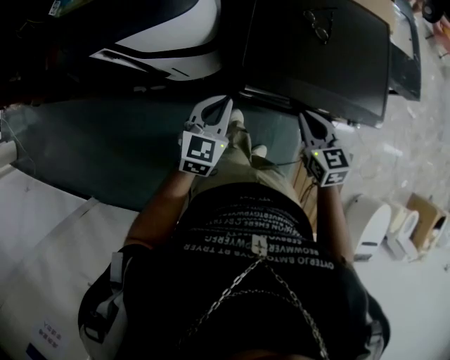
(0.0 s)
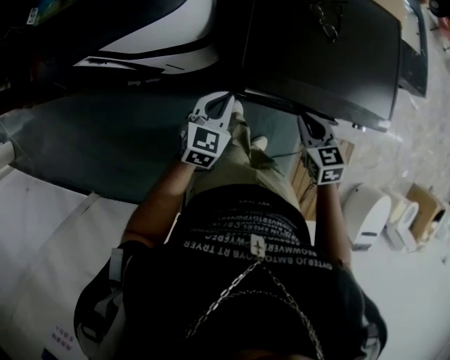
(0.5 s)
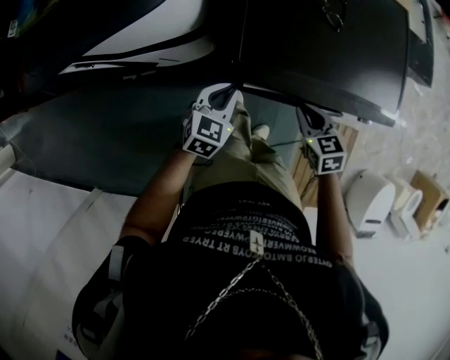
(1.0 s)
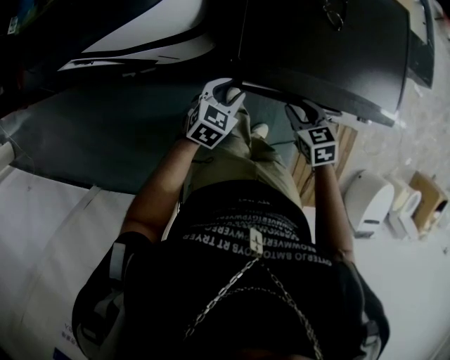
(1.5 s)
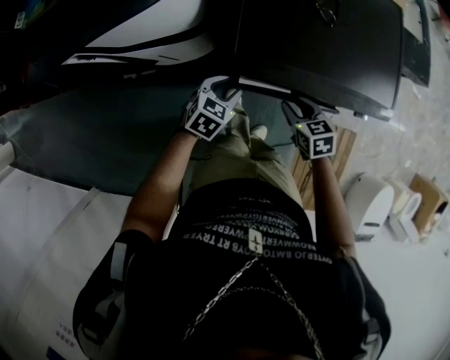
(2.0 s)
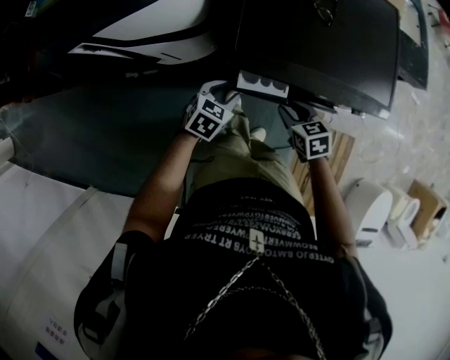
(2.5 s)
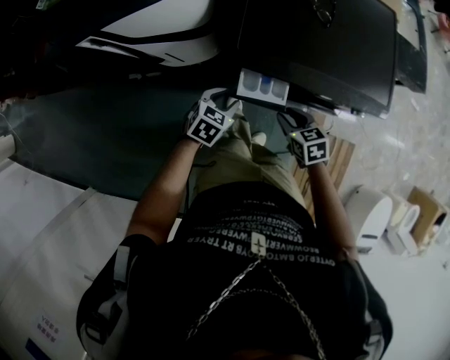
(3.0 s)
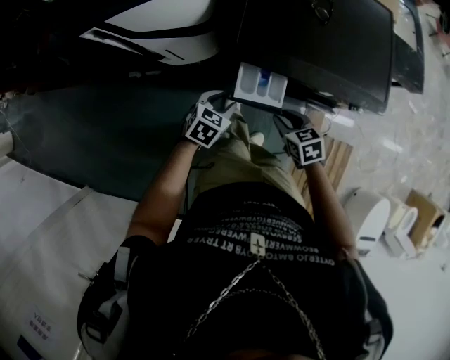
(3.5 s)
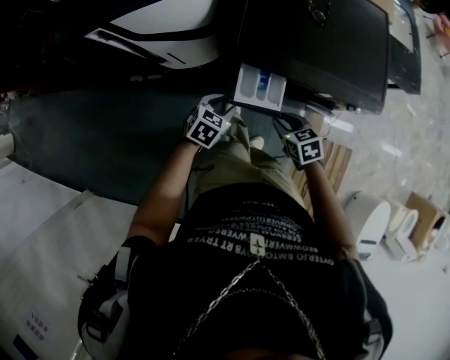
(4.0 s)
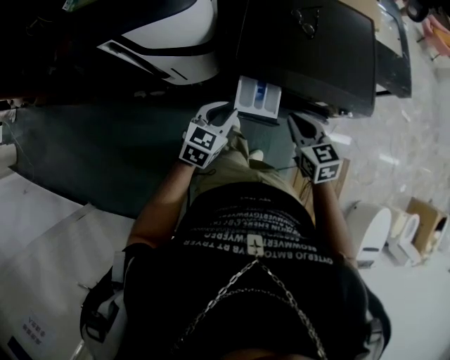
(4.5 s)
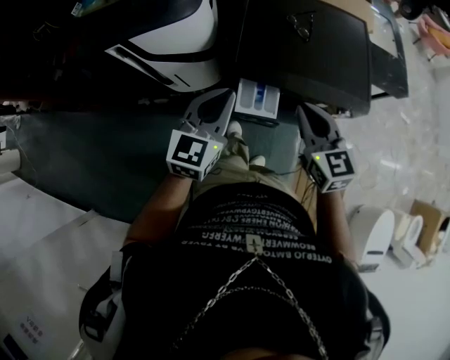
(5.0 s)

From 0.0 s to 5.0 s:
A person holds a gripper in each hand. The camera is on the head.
From 0.0 s to 2.5 s: Both grippers move downward, approximately 15 cm. The right gripper turns by roughly 20 degrees, and opens its fingers, while the left gripper turns by about 30 degrees, and opens its fingers.
From 2.5 s to 5.0 s: The two grippers go some 30 cm upward. The left gripper points its fingers approximately 40 degrees further upward, and closes. Meanwhile the right gripper tilts its fingers roughly 30 degrees upward, and closes up.

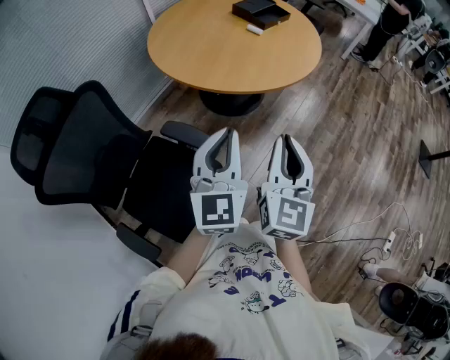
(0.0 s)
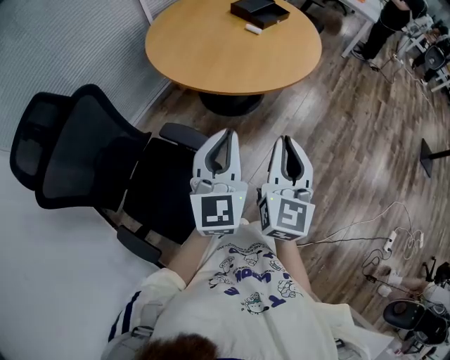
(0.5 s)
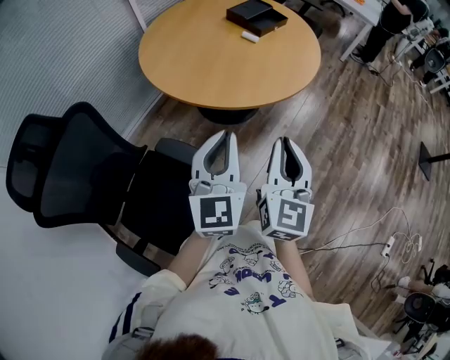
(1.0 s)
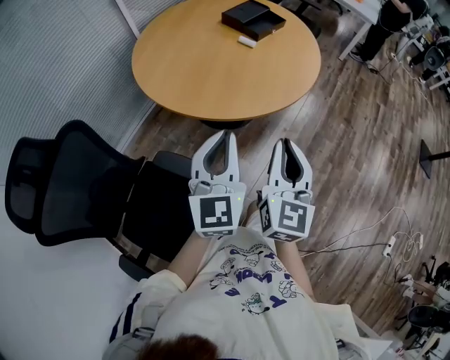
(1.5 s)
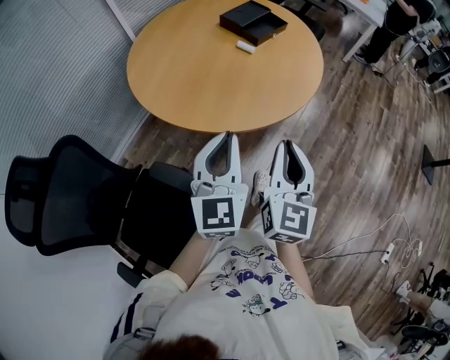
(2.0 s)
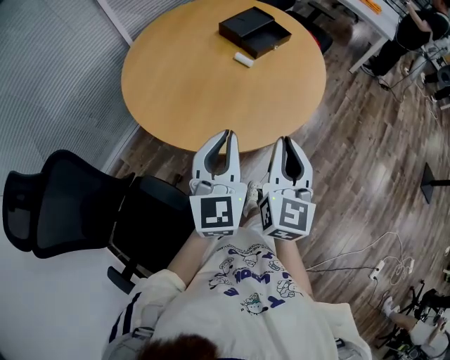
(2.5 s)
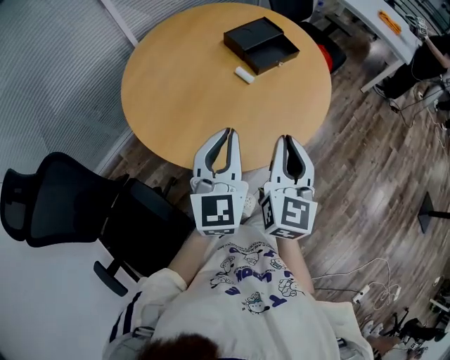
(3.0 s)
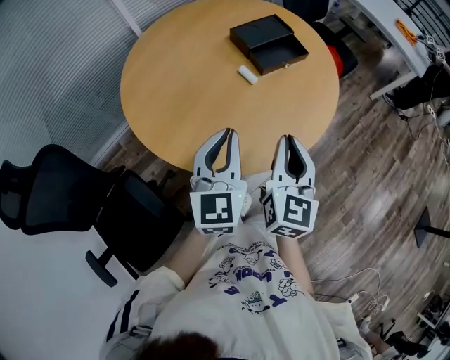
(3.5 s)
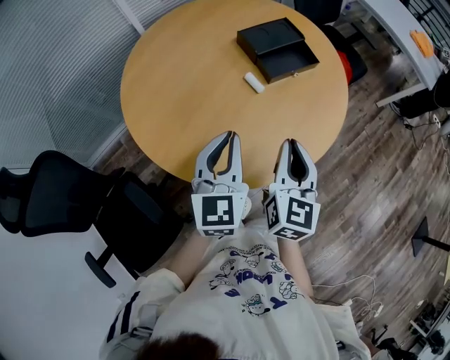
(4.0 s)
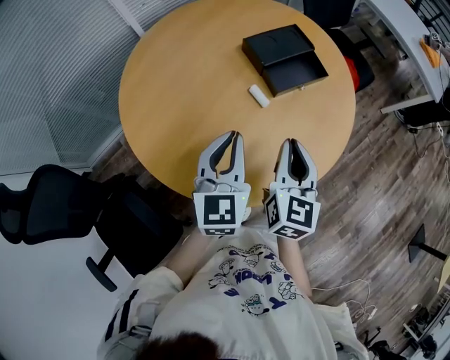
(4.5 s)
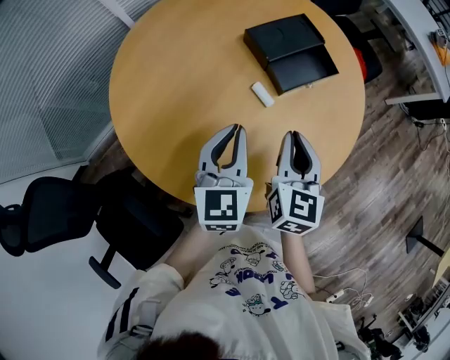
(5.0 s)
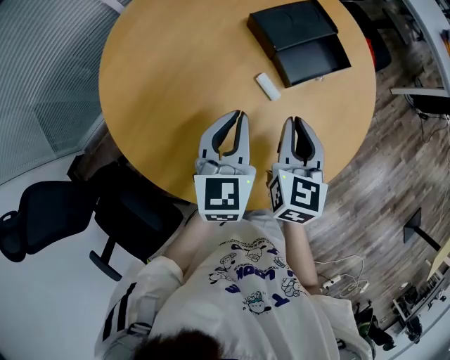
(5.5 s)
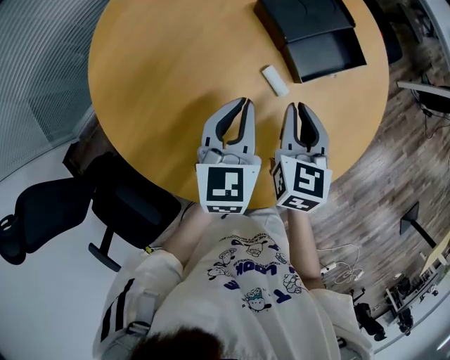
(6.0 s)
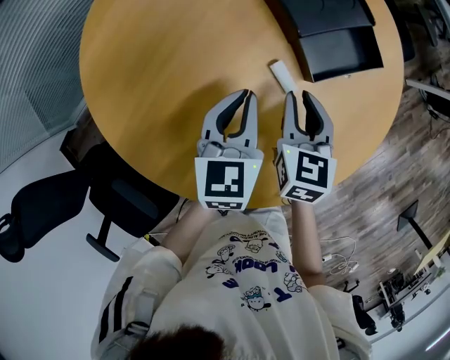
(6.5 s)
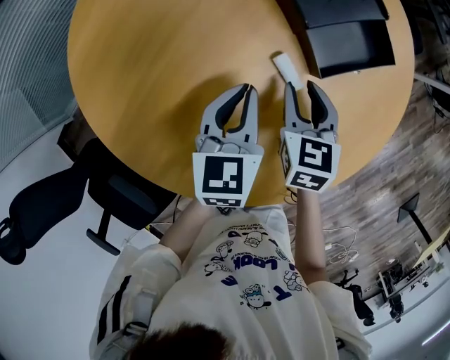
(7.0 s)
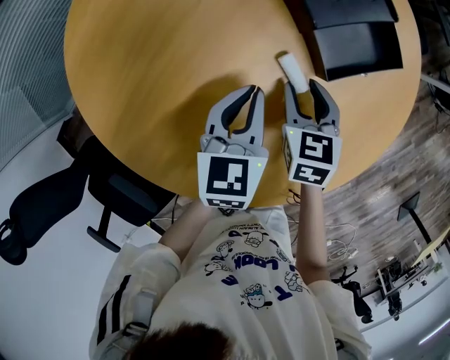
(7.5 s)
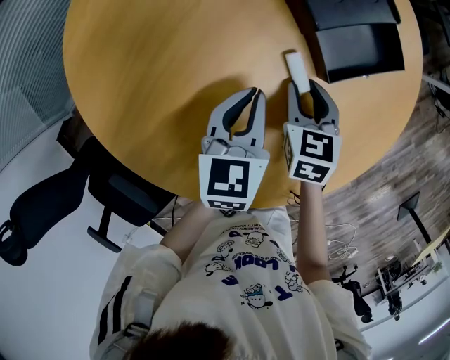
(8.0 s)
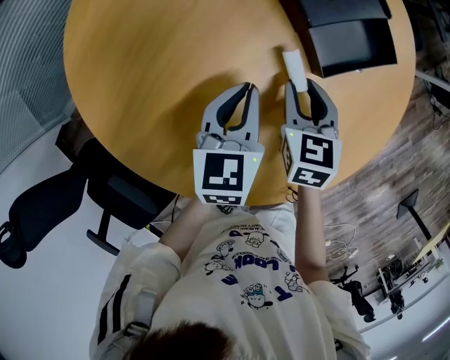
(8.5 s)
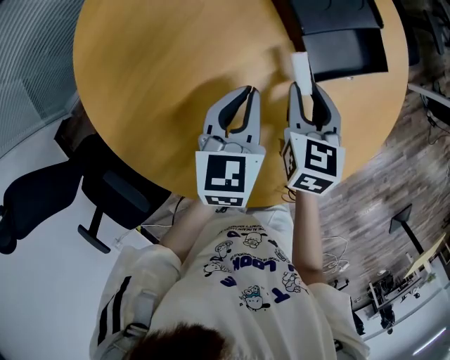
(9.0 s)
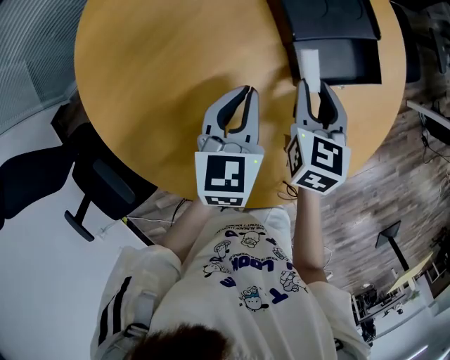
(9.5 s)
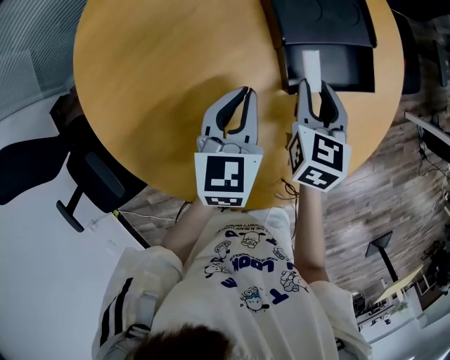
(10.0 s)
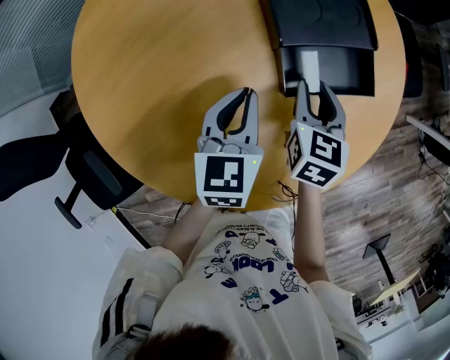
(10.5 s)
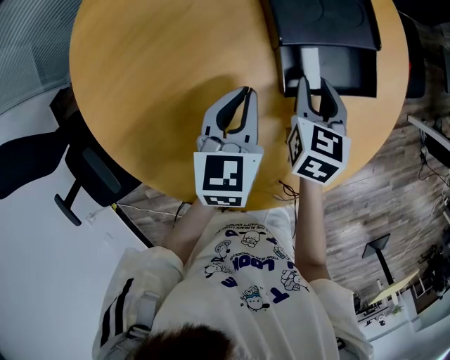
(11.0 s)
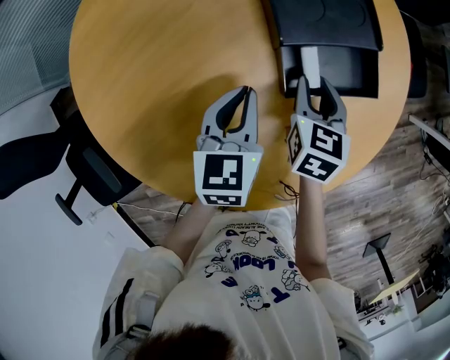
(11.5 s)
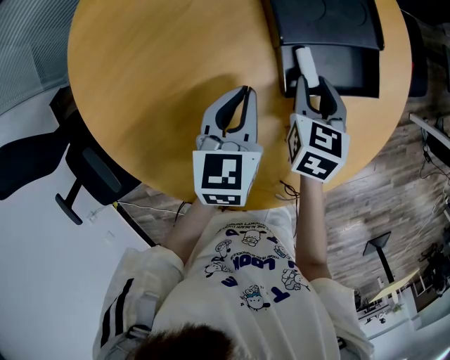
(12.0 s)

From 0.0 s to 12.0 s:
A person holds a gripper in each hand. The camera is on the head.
From 0.0 s to 2.0 s: The two grippers go some 20 cm forward.
From 2.0 s to 4.0 s: Both grippers travel together forward, approximately 25 cm.
From 4.0 s to 6.0 s: Both grippers move forward and downward, some 20 cm.
From 6.0 s to 8.0 s: The two grippers go approximately 10 cm downward. The right gripper opens its fingers.
From 8.0 s to 10.0 s: The left gripper moves some 5 cm. The right gripper is displaced upward, to the right and forward by roughly 10 cm.
From 10.0 s to 12.0 s: The grippers make only small movements.

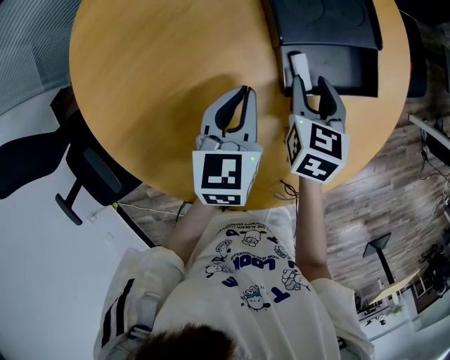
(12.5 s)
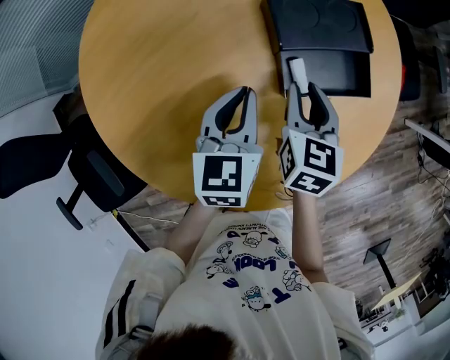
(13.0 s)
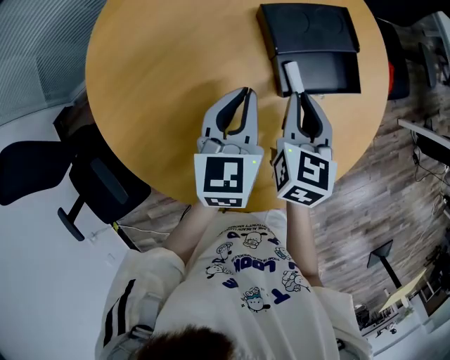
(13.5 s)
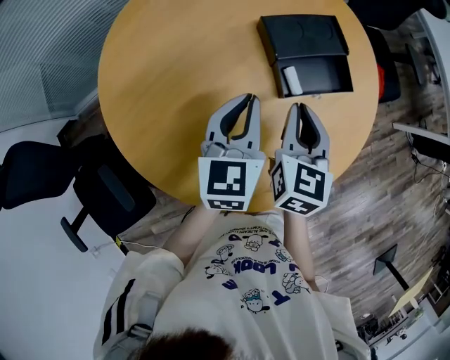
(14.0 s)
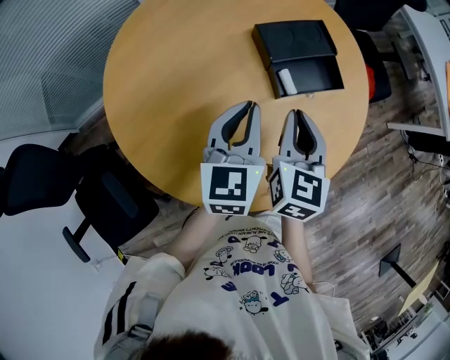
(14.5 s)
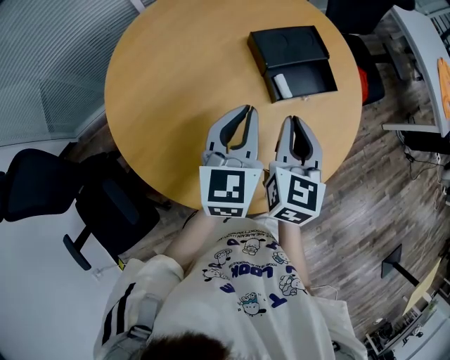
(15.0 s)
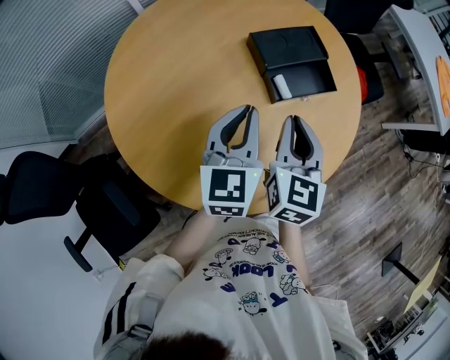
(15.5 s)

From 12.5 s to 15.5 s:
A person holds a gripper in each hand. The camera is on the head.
From 12.5 s to 14.0 s: The right gripper moves upward and backward, some 15 cm, and closes up. The left gripper moves upward, about 10 cm.
From 14.0 s to 15.5 s: The right gripper ends up roughly 5 cm from where it was.

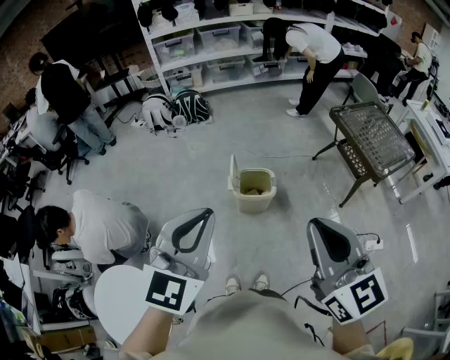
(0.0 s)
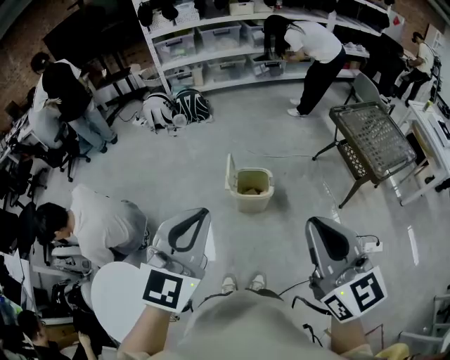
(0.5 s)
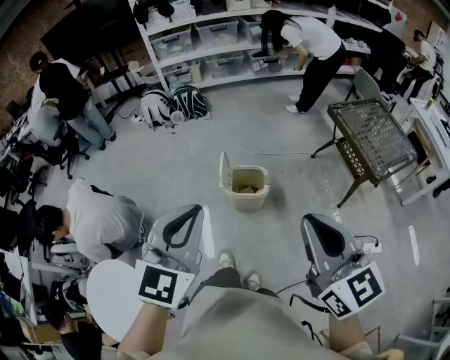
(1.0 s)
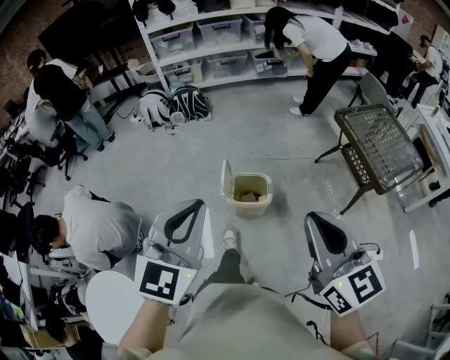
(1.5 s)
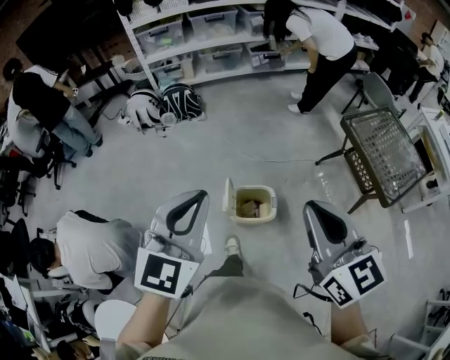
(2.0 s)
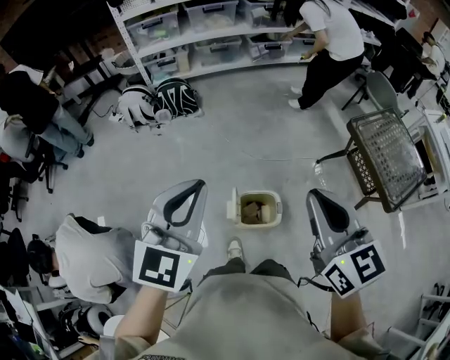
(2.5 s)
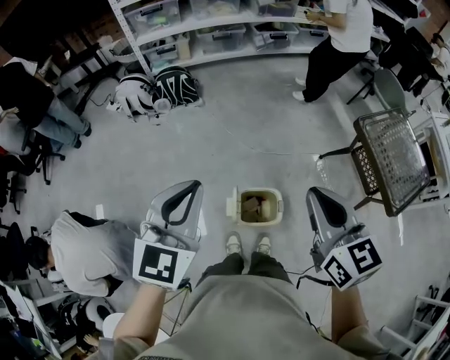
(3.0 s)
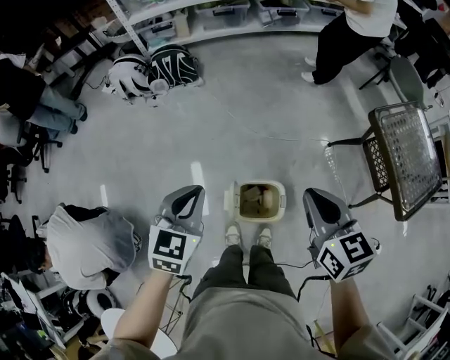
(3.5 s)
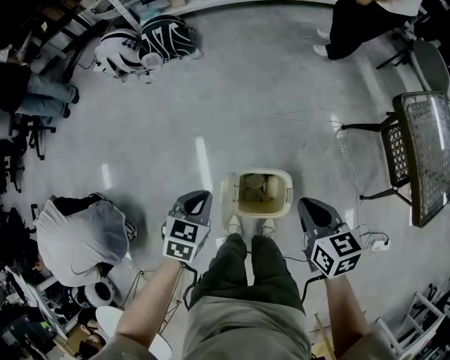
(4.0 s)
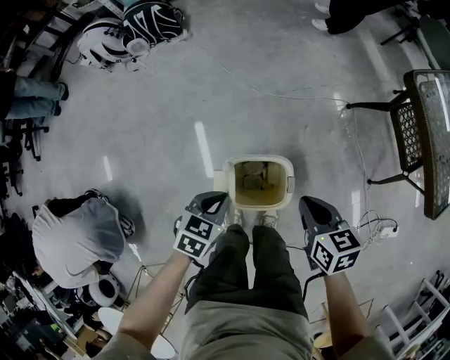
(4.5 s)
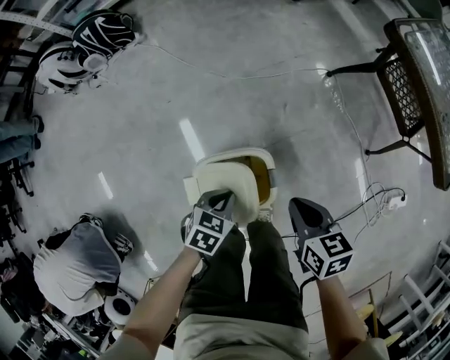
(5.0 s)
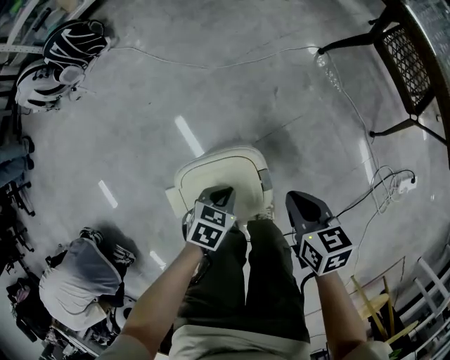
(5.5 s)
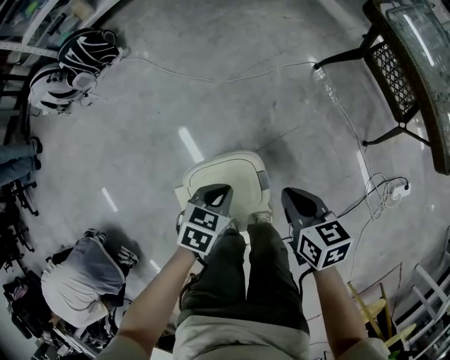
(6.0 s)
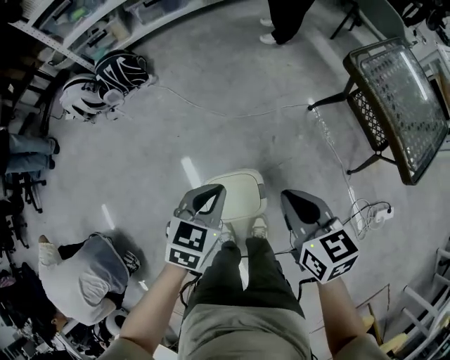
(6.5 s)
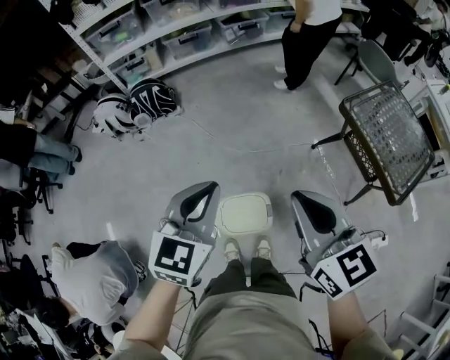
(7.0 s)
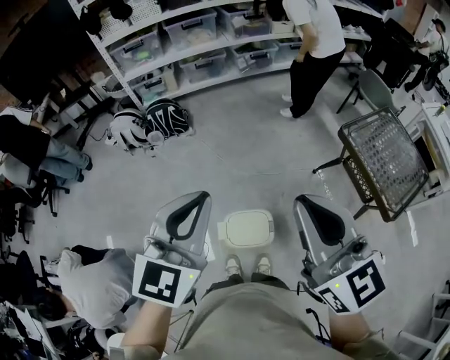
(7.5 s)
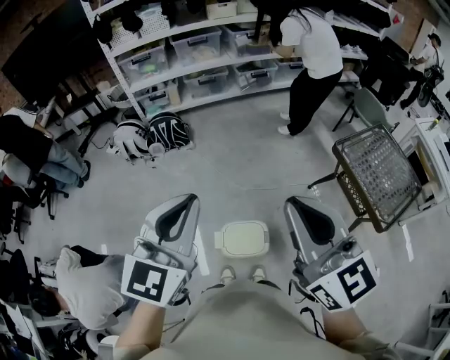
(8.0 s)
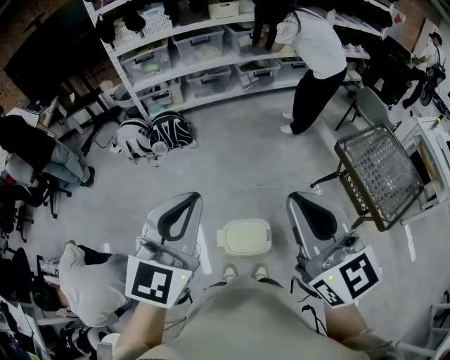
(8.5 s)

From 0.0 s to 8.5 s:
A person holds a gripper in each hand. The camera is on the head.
From 0.0 s to 2.0 s: The two grippers go approximately 30 cm forward.
From 2.0 s to 4.0 s: Both grippers travel together downward and forward, about 50 cm. The left gripper tips its fingers downward by about 40 degrees; the right gripper tilts its fingers about 30 degrees downward.
From 4.0 s to 6.5 s: The right gripper reaches some 25 cm downward, then returns, while the left gripper travels downward and back again, some 30 cm each way.
From 6.5 s to 8.5 s: The grippers both shift upward by roughly 40 cm. The right gripper points its fingers about 30 degrees further upward. Meanwhile the left gripper points its fingers approximately 30 degrees further upward.
